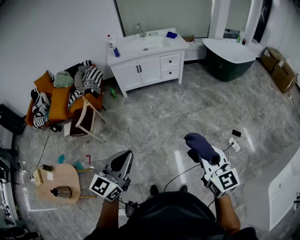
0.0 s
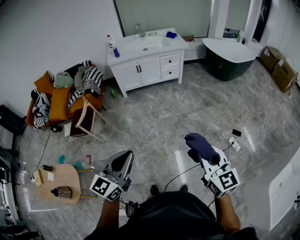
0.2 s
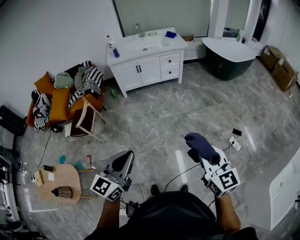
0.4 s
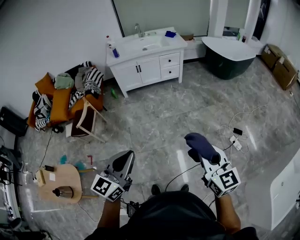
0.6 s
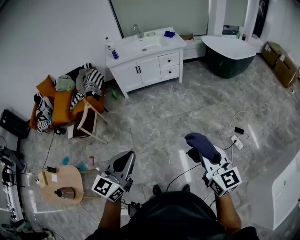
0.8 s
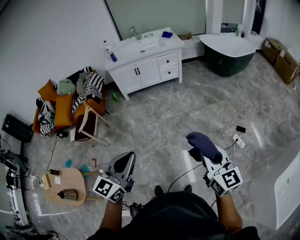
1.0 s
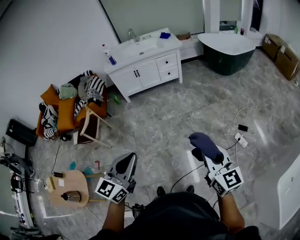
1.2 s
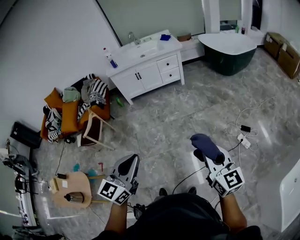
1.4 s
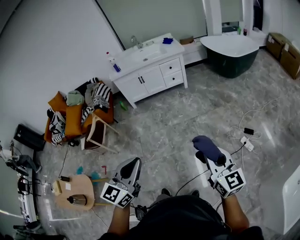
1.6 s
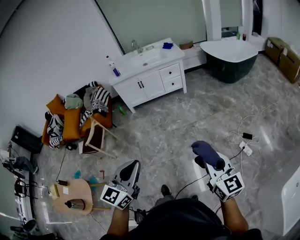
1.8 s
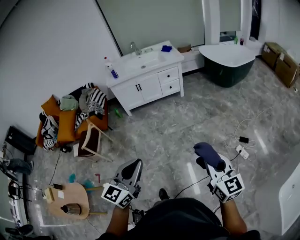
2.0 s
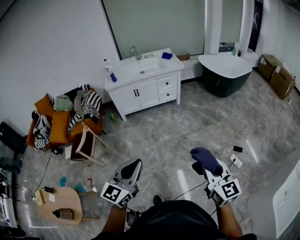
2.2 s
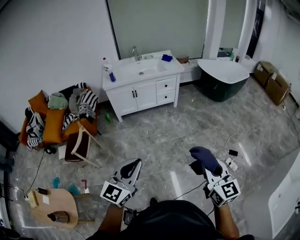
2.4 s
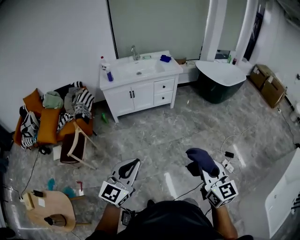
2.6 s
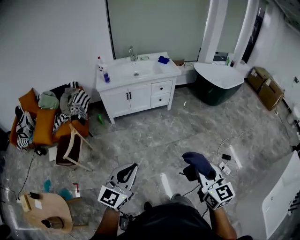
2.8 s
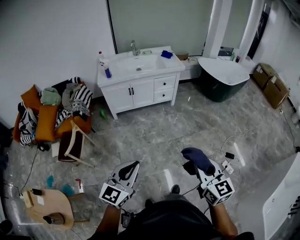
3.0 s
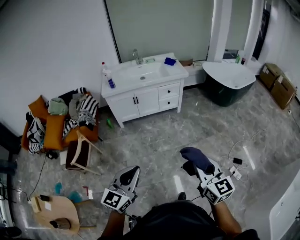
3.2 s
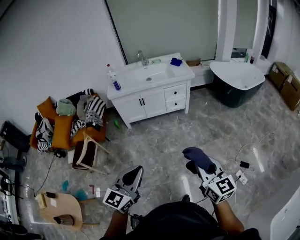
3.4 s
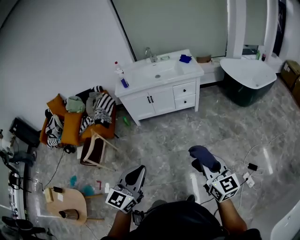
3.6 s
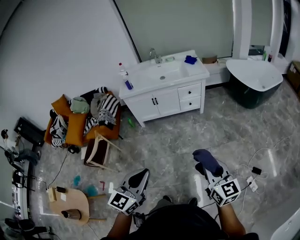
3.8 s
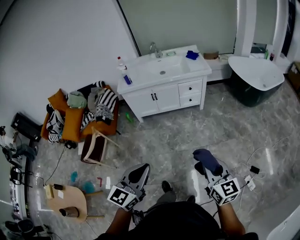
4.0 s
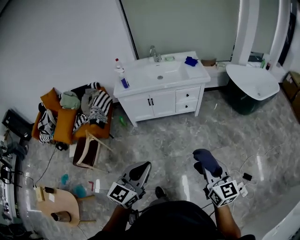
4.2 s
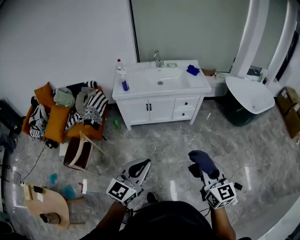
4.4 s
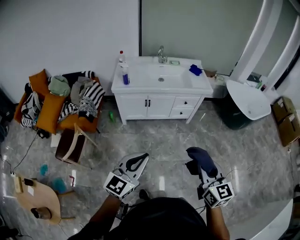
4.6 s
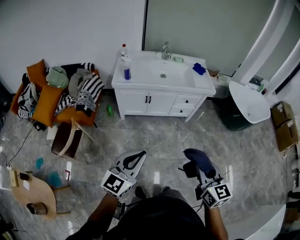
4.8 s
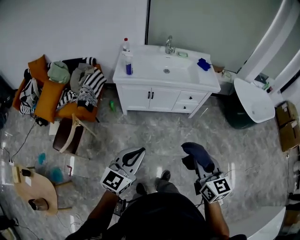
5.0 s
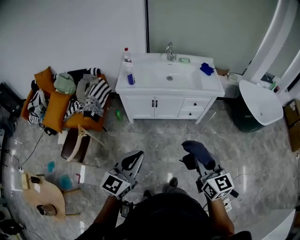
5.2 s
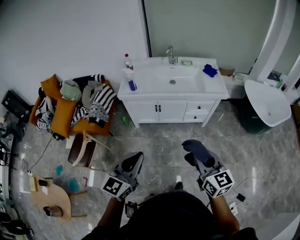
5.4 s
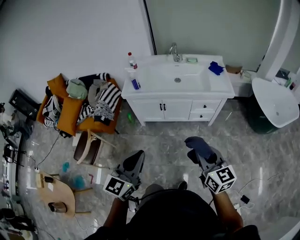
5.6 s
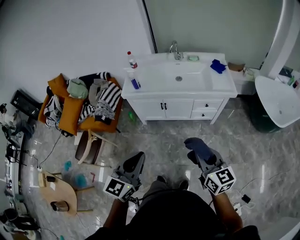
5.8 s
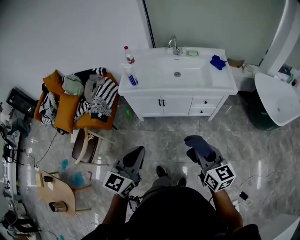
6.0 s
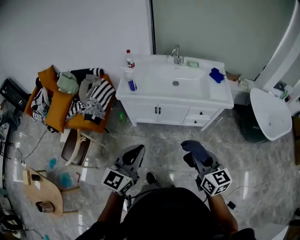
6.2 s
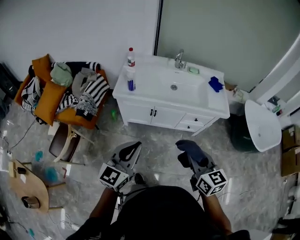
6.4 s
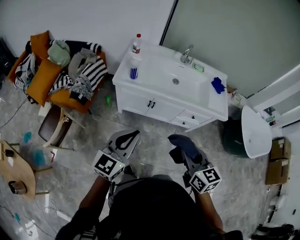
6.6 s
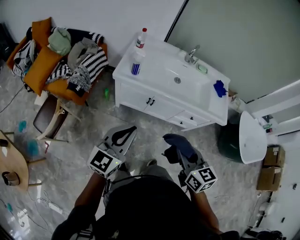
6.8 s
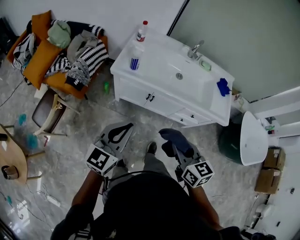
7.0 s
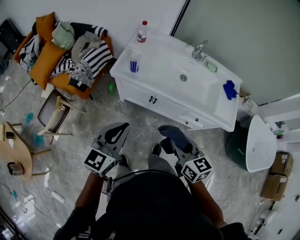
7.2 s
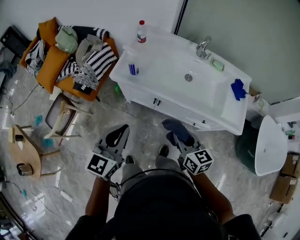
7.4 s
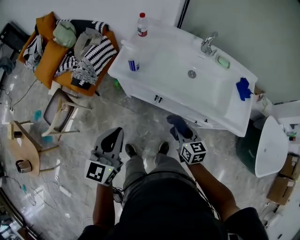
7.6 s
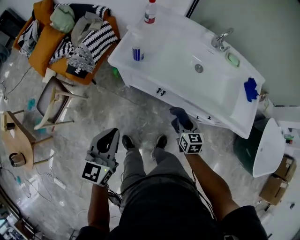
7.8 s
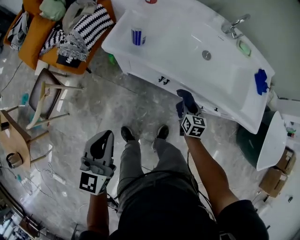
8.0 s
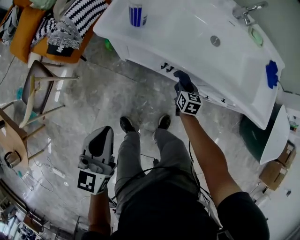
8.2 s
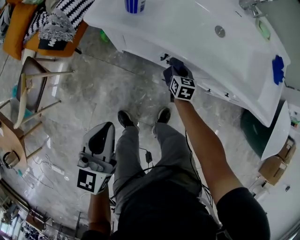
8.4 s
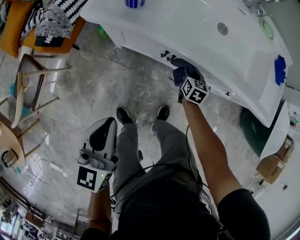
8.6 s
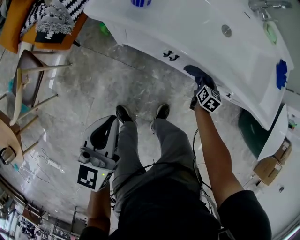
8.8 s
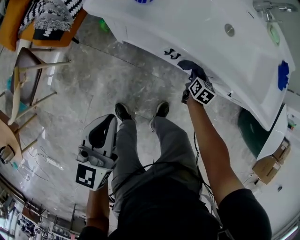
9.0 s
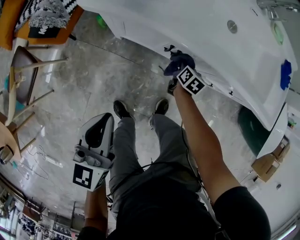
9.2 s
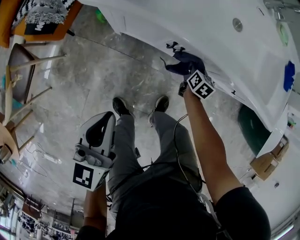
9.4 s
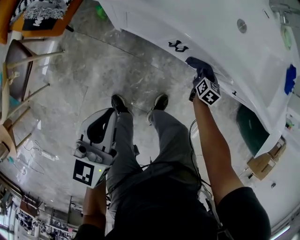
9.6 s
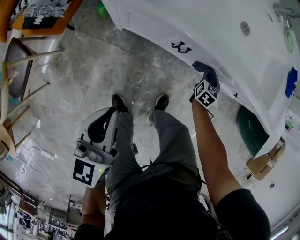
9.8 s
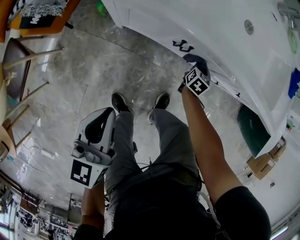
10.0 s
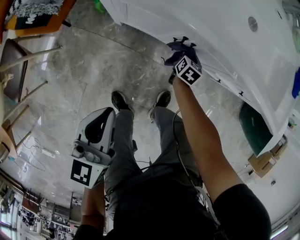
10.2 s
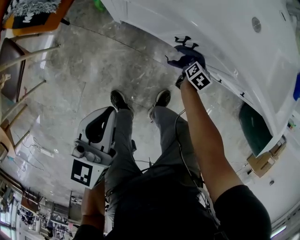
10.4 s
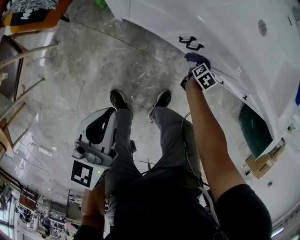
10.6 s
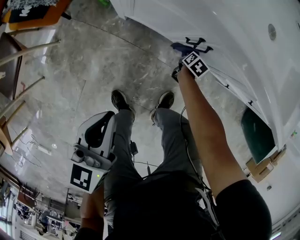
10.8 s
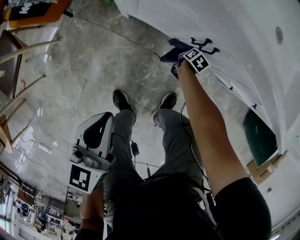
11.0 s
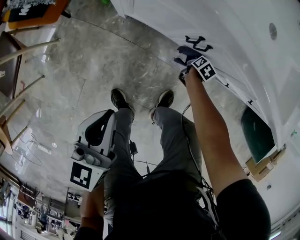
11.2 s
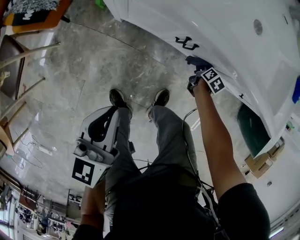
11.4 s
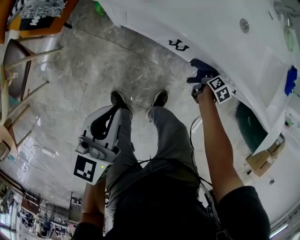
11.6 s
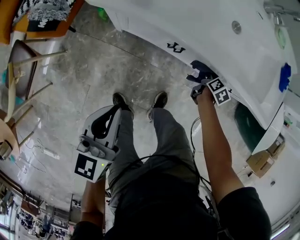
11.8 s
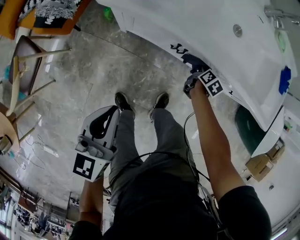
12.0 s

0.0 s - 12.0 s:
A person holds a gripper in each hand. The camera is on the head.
0.0 s - 1.6 s: Both grippers travel together to the right, some 15 cm.
1.6 s - 3.0 s: The left gripper shifts approximately 25 cm forward and to the left. Meanwhile the right gripper heads to the left and forward, covering some 25 cm.
3.0 s - 4.4 s: The two grippers go roughly 25 cm forward.
4.4 s - 6.0 s: Both grippers move forward, roughly 25 cm.
6.0 s - 7.6 s: The left gripper shifts some 25 cm forward, and turns by about 30 degrees; the right gripper goes approximately 40 cm forward and downward, and rotates about 20 degrees.
7.6 s - 9.0 s: The left gripper is displaced downward by roughly 25 cm, while the right gripper shifts some 40 cm downward and forward, and rotates some 30 degrees.
9.0 s - 10.4 s: Both grippers travel together downward, roughly 10 cm.
10.4 s - 12.0 s: Both grippers travel together upward, roughly 10 cm.

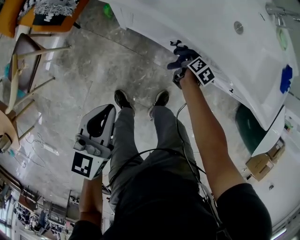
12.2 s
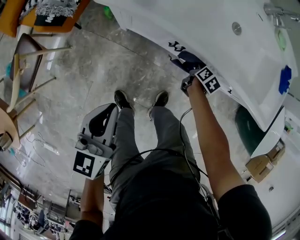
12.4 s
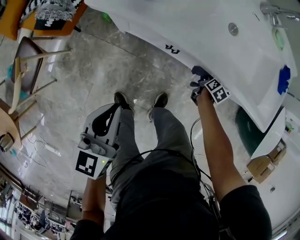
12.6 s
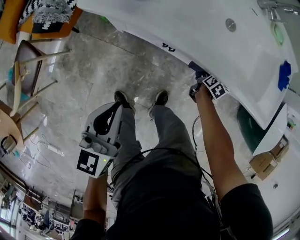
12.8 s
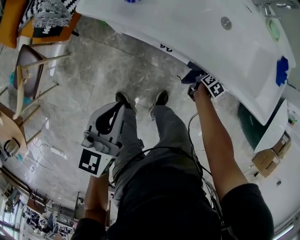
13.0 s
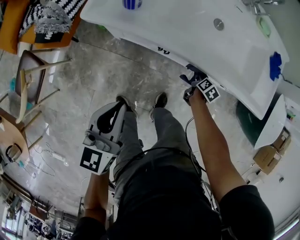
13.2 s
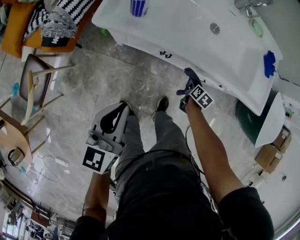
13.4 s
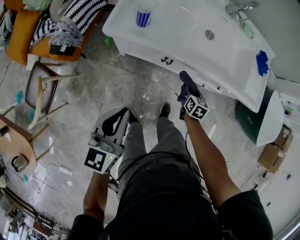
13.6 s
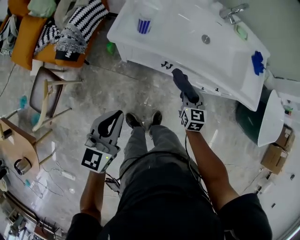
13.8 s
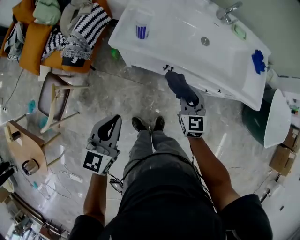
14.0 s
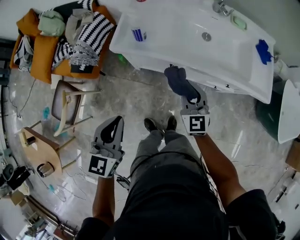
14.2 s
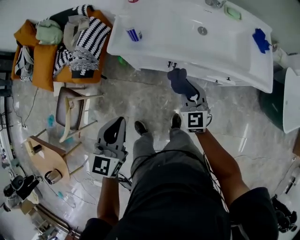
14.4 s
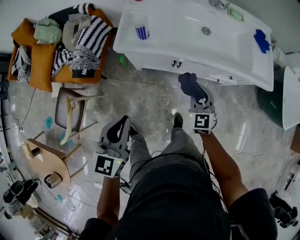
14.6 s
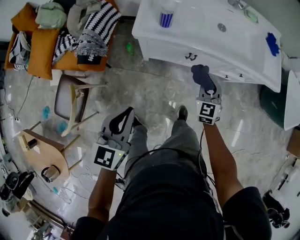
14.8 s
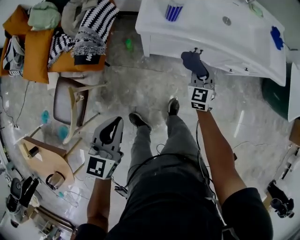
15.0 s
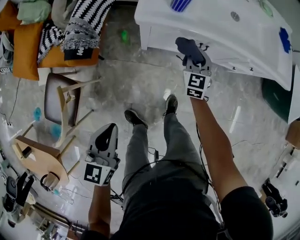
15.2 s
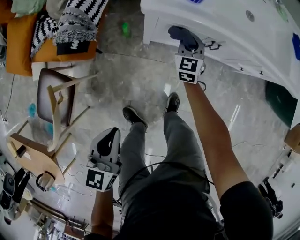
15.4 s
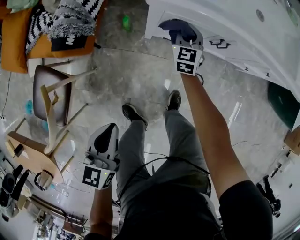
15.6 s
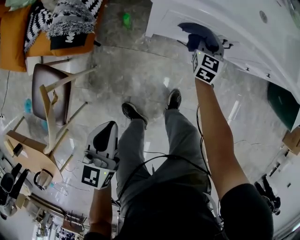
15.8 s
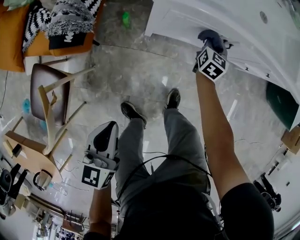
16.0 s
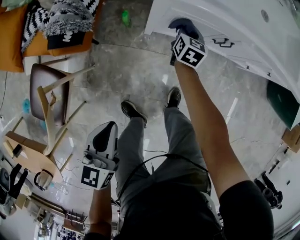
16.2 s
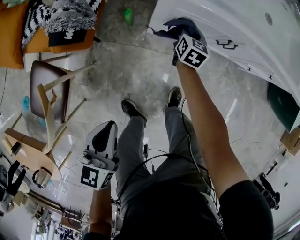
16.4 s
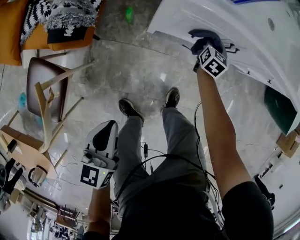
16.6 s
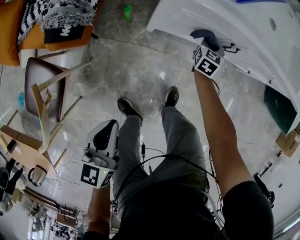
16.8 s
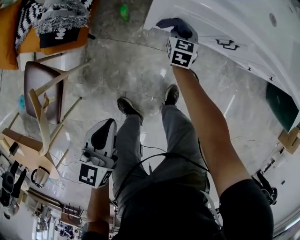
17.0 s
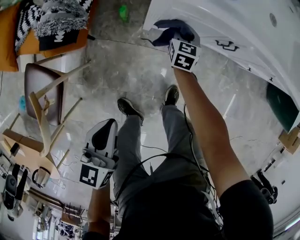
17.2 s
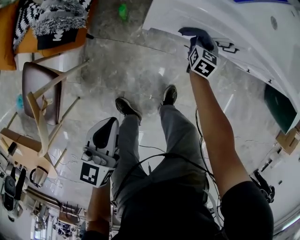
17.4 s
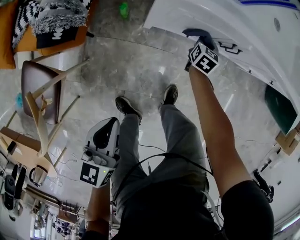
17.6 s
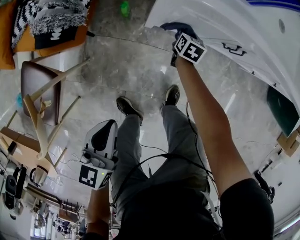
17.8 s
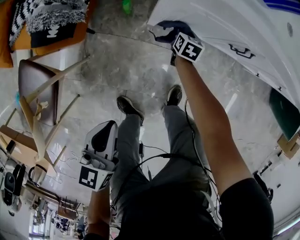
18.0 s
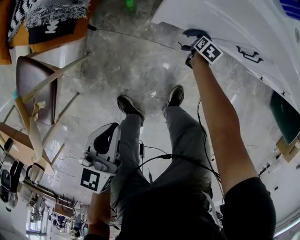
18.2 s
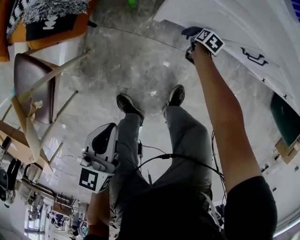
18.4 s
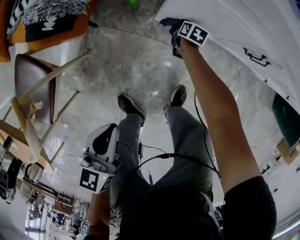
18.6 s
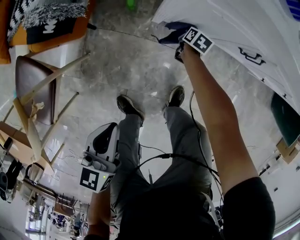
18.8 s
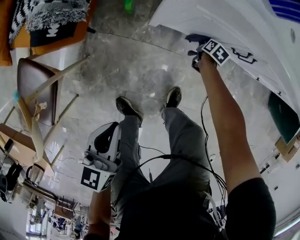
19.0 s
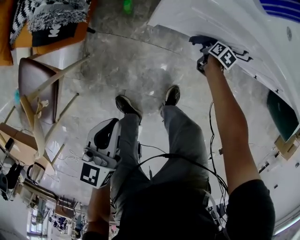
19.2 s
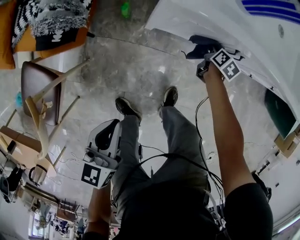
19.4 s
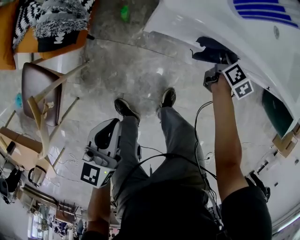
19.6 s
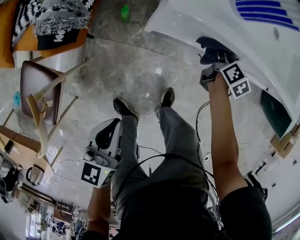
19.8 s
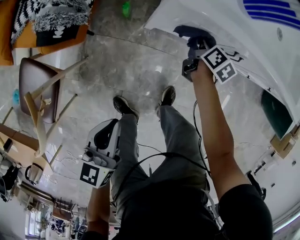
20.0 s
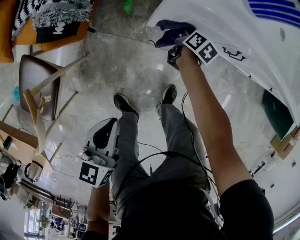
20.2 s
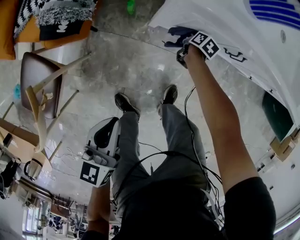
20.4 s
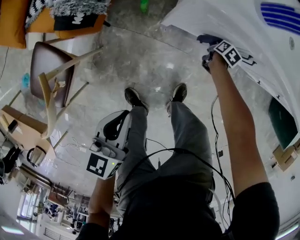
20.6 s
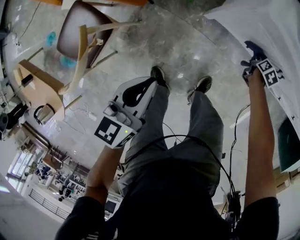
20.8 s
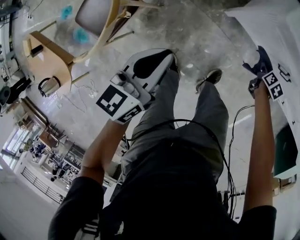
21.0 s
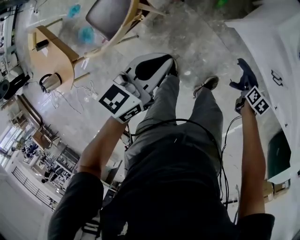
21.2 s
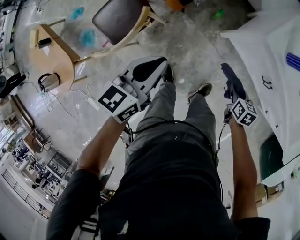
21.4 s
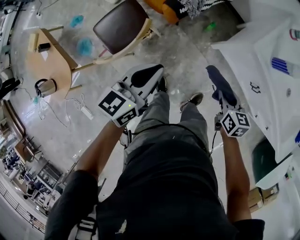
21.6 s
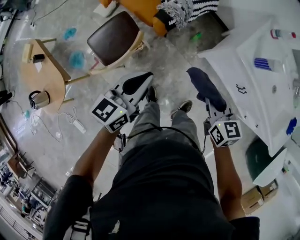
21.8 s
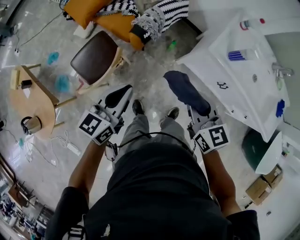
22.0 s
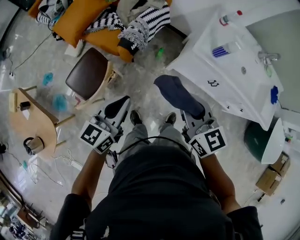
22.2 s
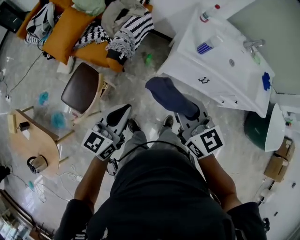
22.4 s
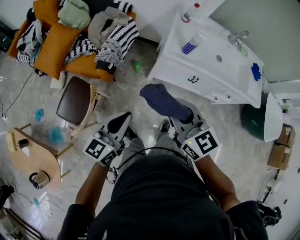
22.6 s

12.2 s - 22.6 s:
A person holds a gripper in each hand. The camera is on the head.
12.2 s - 13.6 s: The right gripper moves upward and backward, roughly 20 cm, goes to the right and returns, about 15 cm each way, and changes its angle by roughly 20 degrees; the left gripper moves upward, some 10 cm.
13.6 s - 15.2 s: The right gripper is displaced to the left by some 25 cm, and changes its angle by roughly 40 degrees. Meanwhile the left gripper heads to the left, backward and downward, covering roughly 25 cm.
15.2 s - 16.6 s: The left gripper moves downward, about 10 cm, while the right gripper heads downward and forward, covering approximately 20 cm, and rotates approximately 30 degrees.
16.6 s - 18.2 s: The right gripper is displaced downward by roughly 25 cm, and changes its angle by some 30 degrees, while the left gripper travels downward by approximately 10 cm.
18.2 s - 19.6 s: The left gripper goes roughly 5 cm upward; the right gripper goes roughly 25 cm upward, and turns by roughly 20 degrees.
19.6 s - 21.2 s: The left gripper travels upward by about 15 cm. Meanwhile the right gripper goes downward and returns, some 20 cm each way, and rotates about 40 degrees.
21.2 s - 22.6 s: The left gripper travels upward and backward by roughly 20 cm, and turns by some 30 degrees; the right gripper shifts approximately 60 cm upward and to the left, and angles its fingers upward, by some 50 degrees.

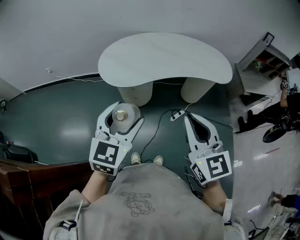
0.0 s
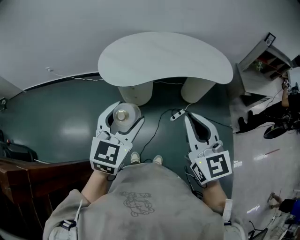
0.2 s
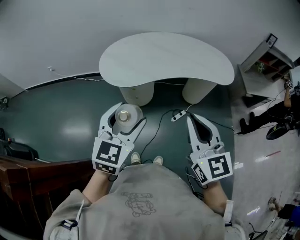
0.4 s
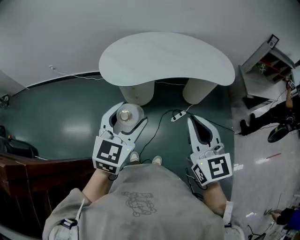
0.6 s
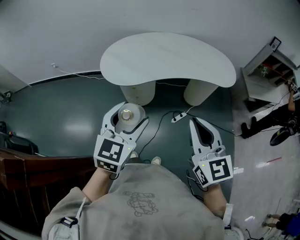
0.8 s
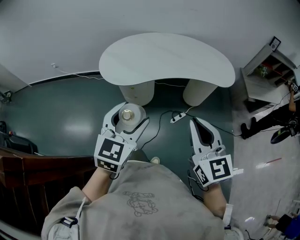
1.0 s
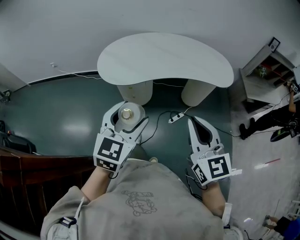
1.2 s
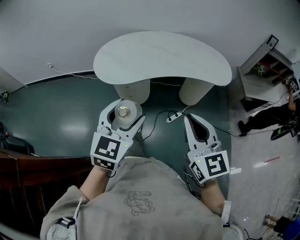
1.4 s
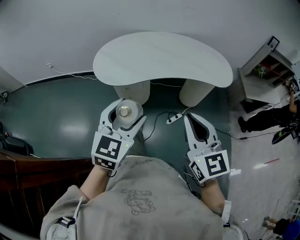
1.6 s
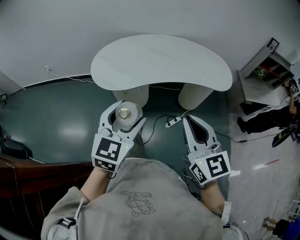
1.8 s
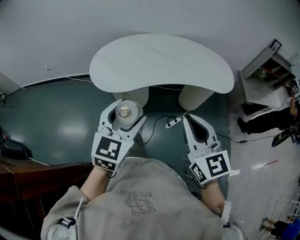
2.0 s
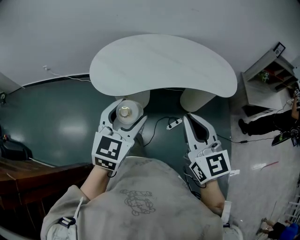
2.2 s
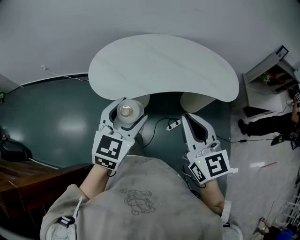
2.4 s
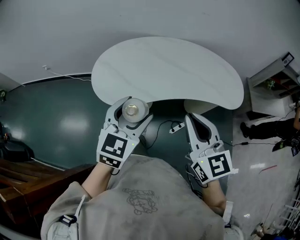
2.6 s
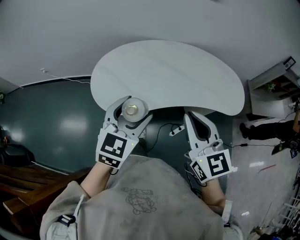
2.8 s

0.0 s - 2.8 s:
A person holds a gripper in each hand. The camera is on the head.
0.0 s - 1.4 s: Both grippers move to the right, about 10 cm.
1.4 s - 2.8 s: The two grippers go roughly 25 cm forward.
